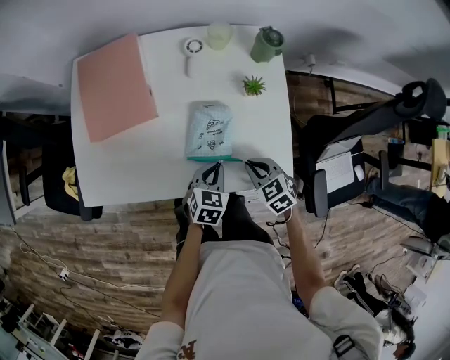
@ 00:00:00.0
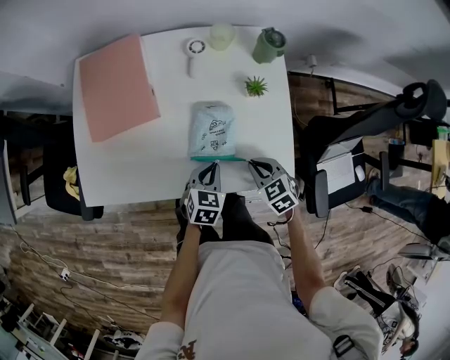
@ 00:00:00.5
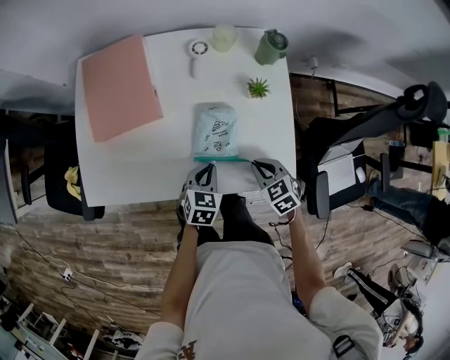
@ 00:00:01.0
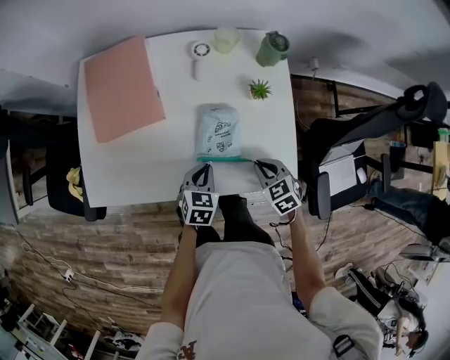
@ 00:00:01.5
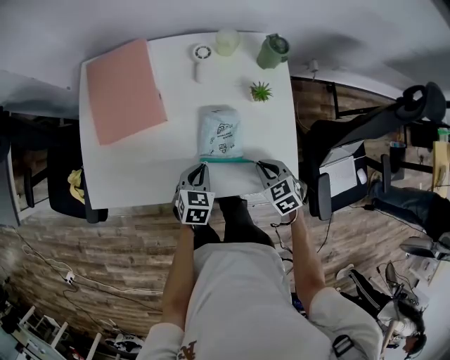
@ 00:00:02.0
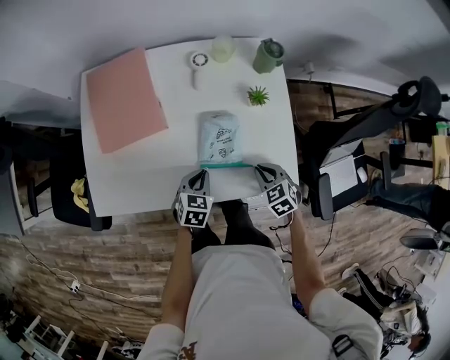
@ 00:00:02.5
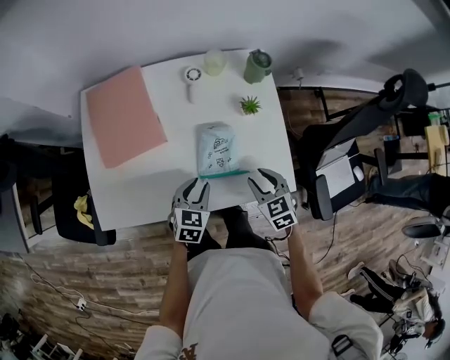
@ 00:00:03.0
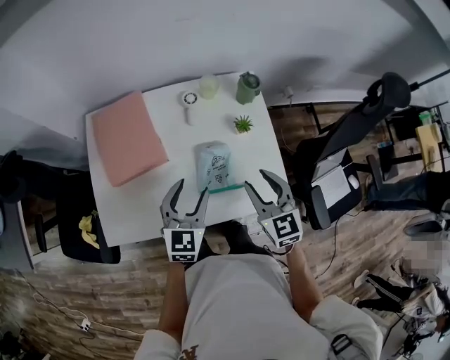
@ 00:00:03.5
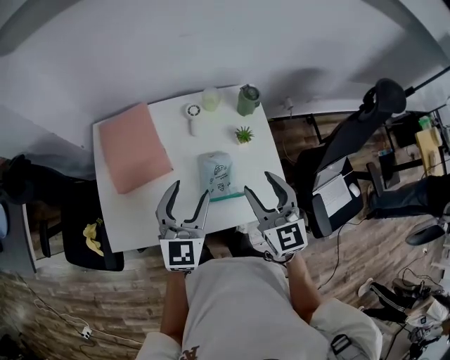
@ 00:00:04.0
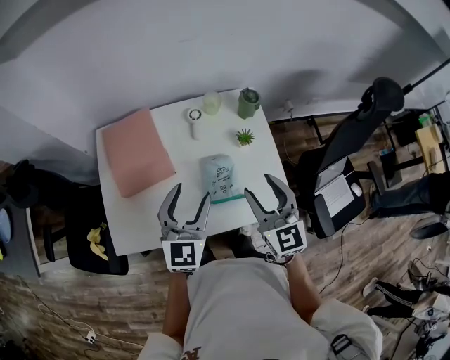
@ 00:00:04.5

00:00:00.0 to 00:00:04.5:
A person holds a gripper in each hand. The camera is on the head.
00:00:00.0 to 00:00:02.0: The left gripper shifts roughly 5 cm to the left.
00:00:02.0 to 00:00:04.5: The two grippers go approximately 30 cm upward. The left gripper angles its fingers upward, by some 40 degrees, and opens, while the right gripper points its fingers about 40 degrees further upward, and opens up.

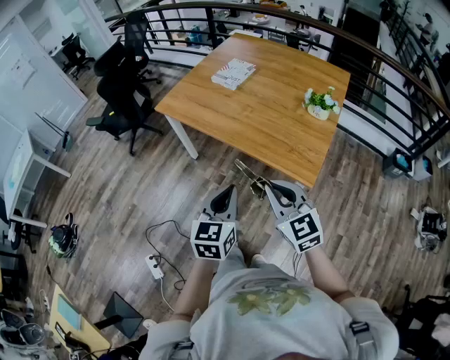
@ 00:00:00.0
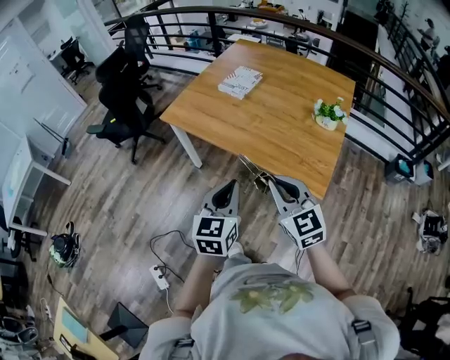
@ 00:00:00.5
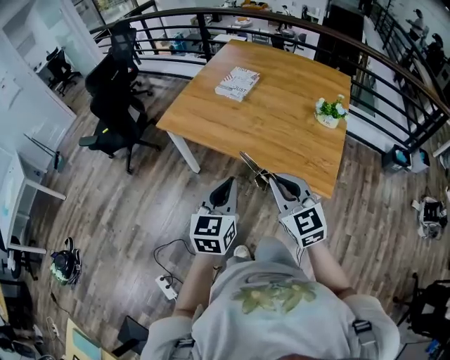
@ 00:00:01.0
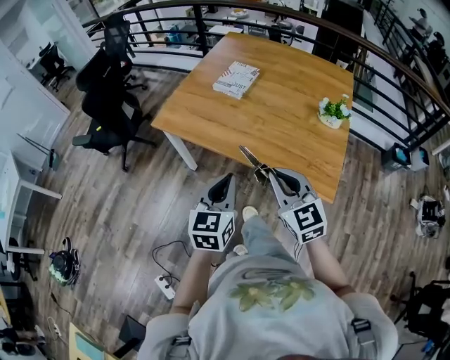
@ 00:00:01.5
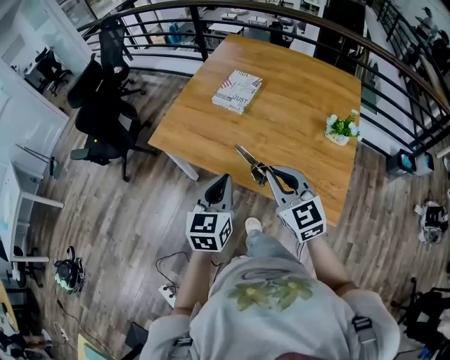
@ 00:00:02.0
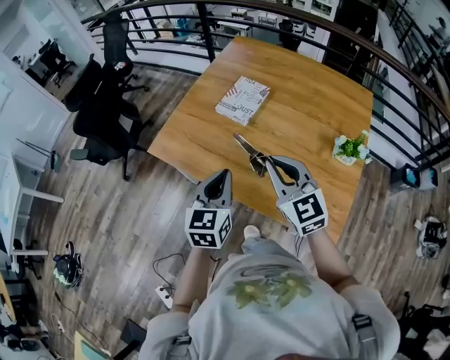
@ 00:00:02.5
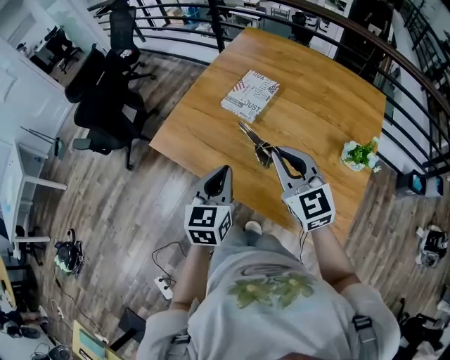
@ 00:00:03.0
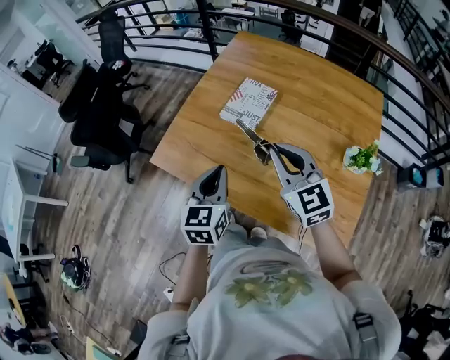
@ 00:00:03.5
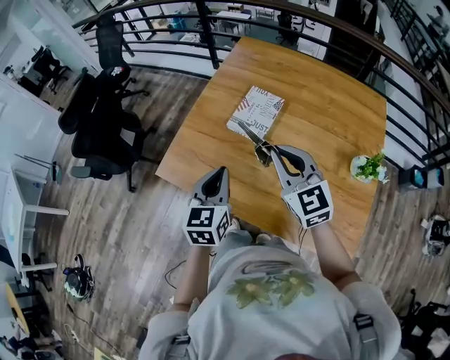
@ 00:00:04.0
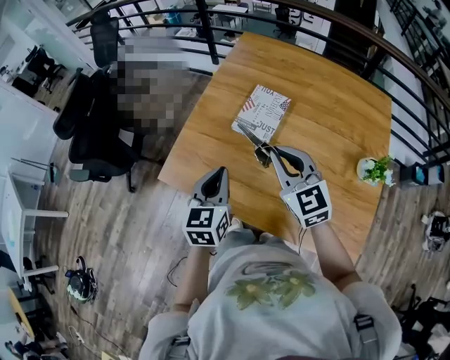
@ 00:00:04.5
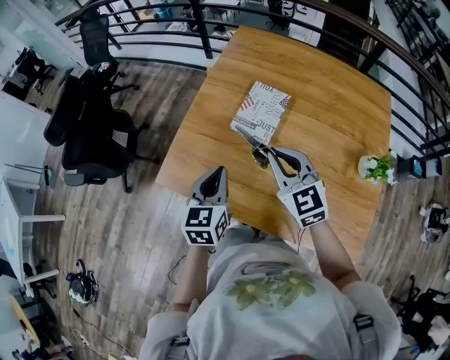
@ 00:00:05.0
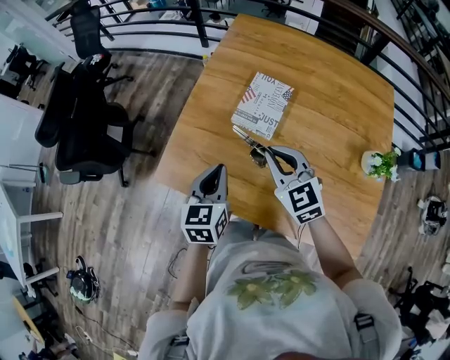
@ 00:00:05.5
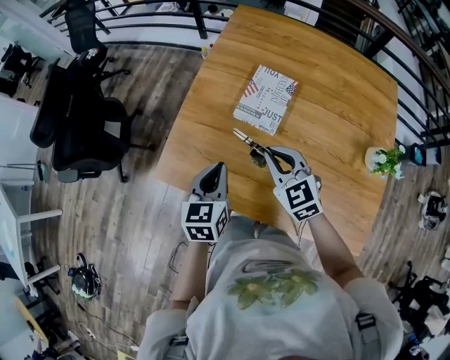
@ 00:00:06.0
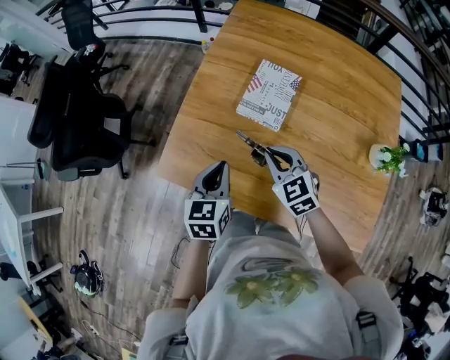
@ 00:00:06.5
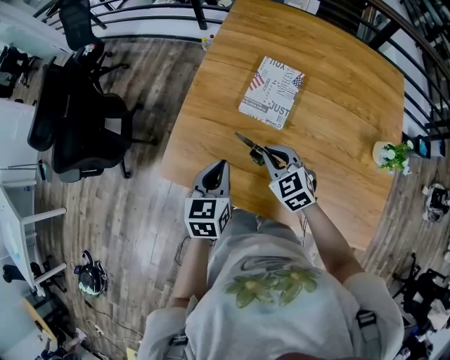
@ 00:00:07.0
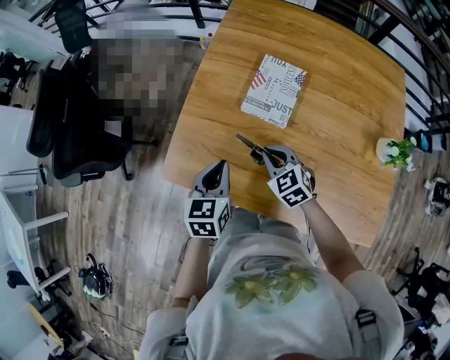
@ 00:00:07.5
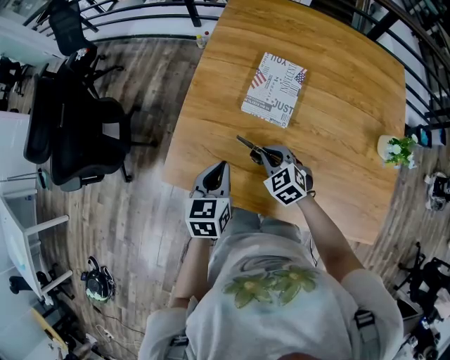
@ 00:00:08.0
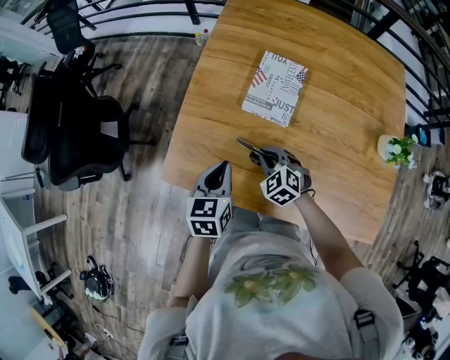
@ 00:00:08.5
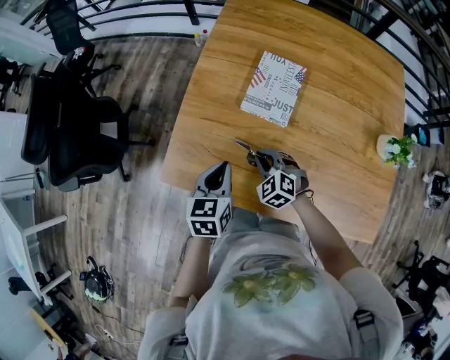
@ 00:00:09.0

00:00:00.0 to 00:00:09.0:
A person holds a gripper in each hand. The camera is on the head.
00:00:00.0 to 00:00:02.0: Both grippers travel together forward, approximately 30 cm.
00:00:02.0 to 00:00:04.5: The two grippers go about 30 cm forward.
00:00:04.5 to 00:00:07.0: The right gripper goes some 20 cm downward, and changes its angle by approximately 20 degrees, while the left gripper goes roughly 10 cm downward and forward.
00:00:07.0 to 00:00:09.0: The right gripper heads downward, covering roughly 10 cm.

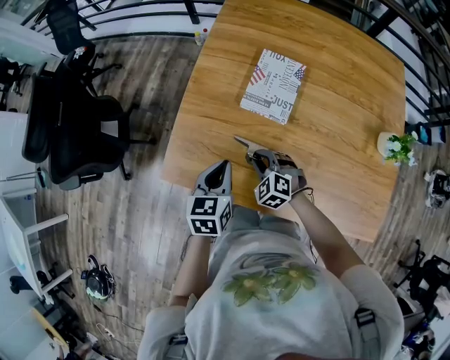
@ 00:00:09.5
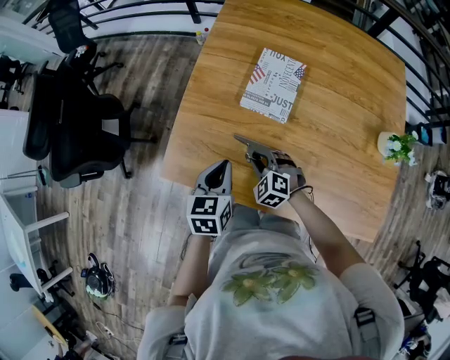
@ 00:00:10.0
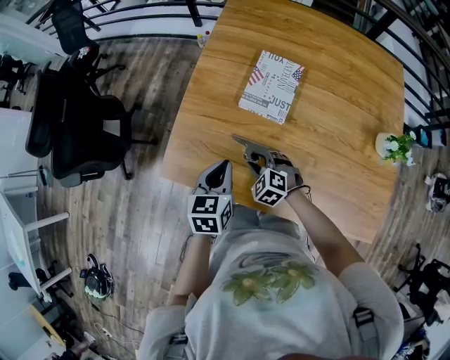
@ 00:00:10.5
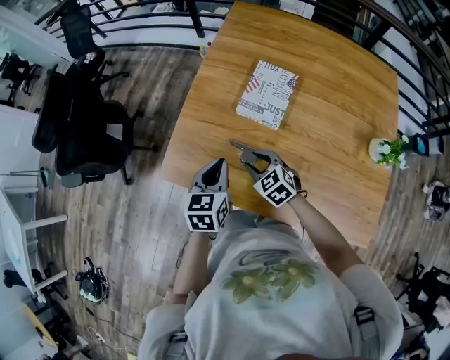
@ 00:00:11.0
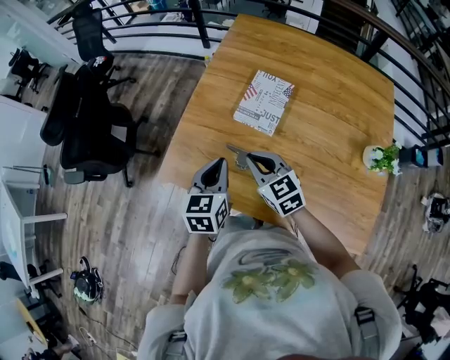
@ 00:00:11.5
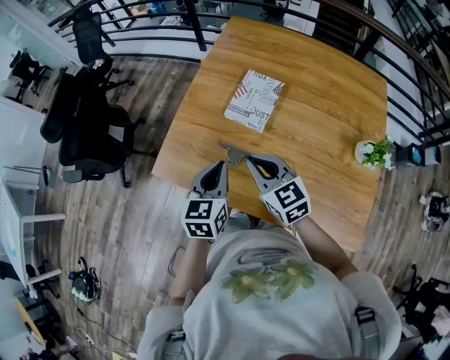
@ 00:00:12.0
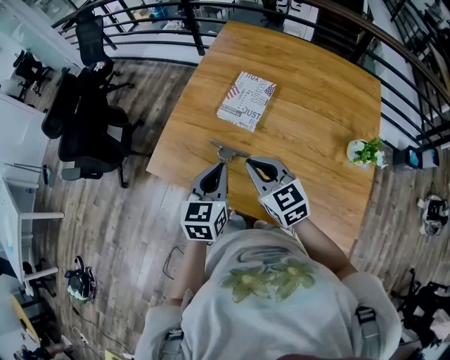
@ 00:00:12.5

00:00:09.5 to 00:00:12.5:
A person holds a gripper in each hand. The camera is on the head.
00:00:09.5 to 00:00:11.0: The right gripper moves upward, approximately 5 cm, and swivels roughly 20 degrees.
00:00:11.0 to 00:00:12.5: The right gripper travels upward and backward by some 20 cm, turns by approximately 20 degrees, and closes its fingers, while the left gripper heads backward, upward and to the right, covering some 15 cm.

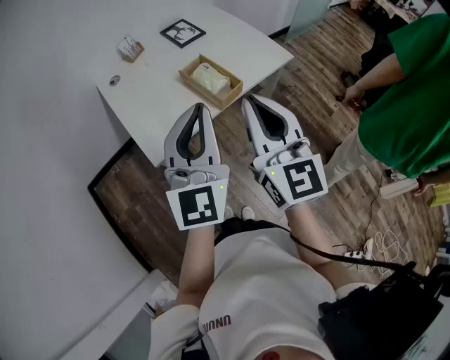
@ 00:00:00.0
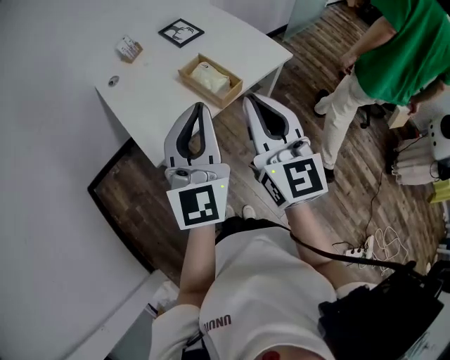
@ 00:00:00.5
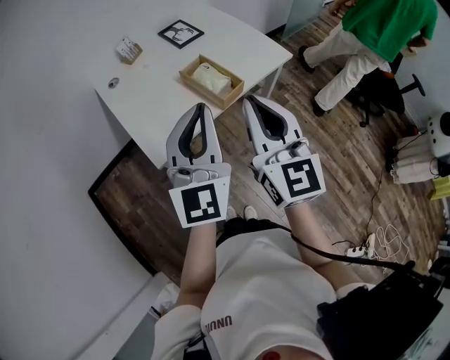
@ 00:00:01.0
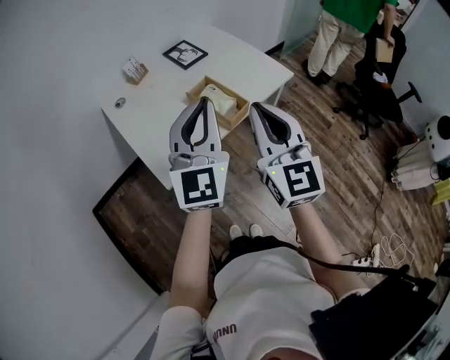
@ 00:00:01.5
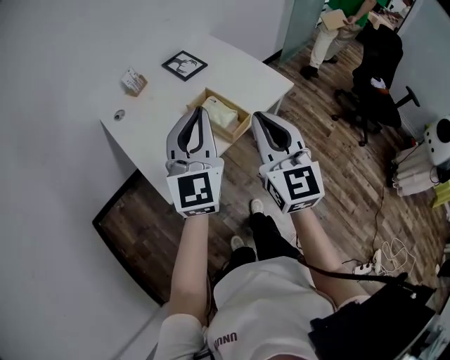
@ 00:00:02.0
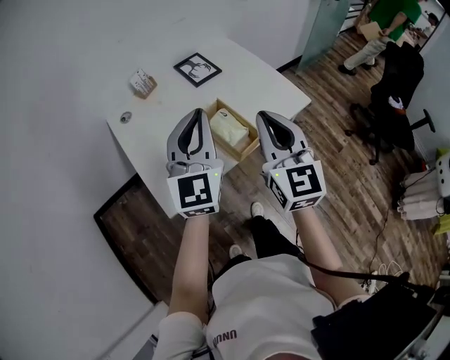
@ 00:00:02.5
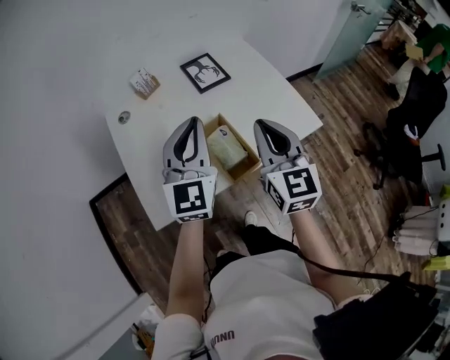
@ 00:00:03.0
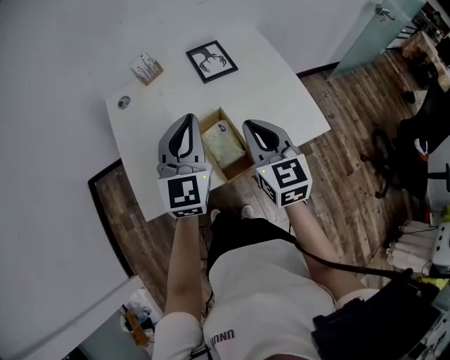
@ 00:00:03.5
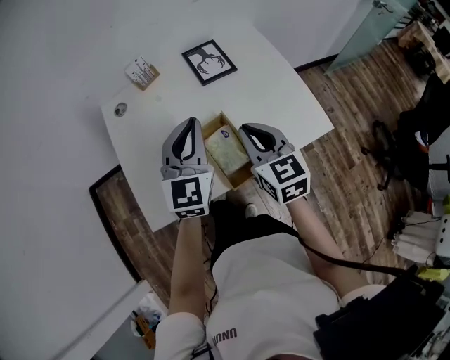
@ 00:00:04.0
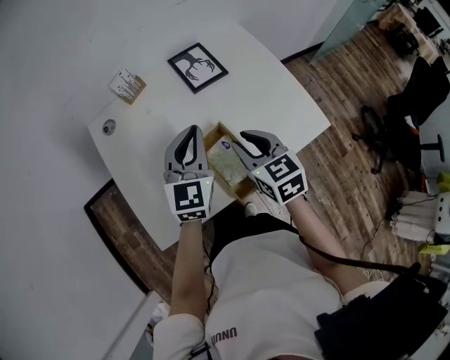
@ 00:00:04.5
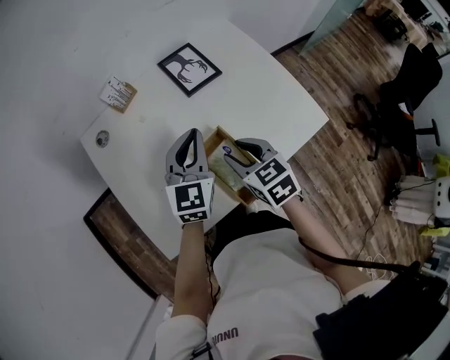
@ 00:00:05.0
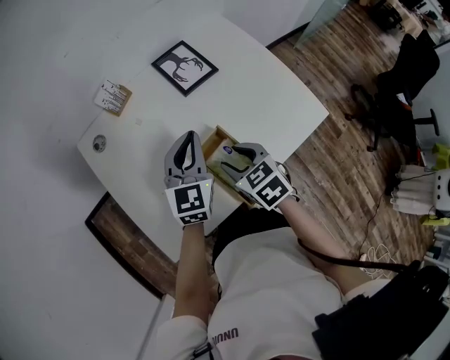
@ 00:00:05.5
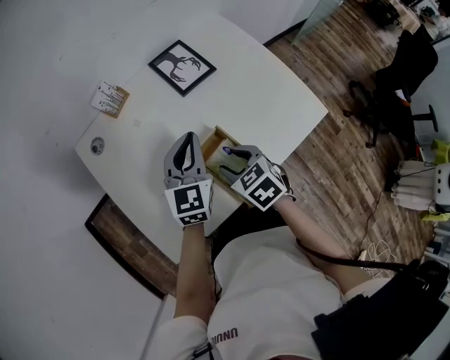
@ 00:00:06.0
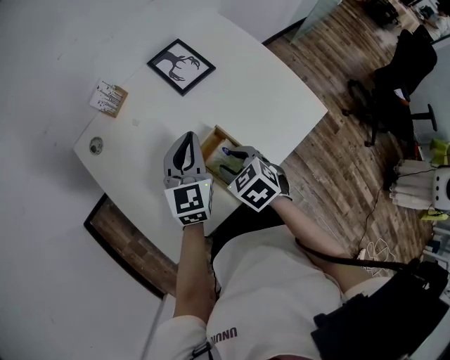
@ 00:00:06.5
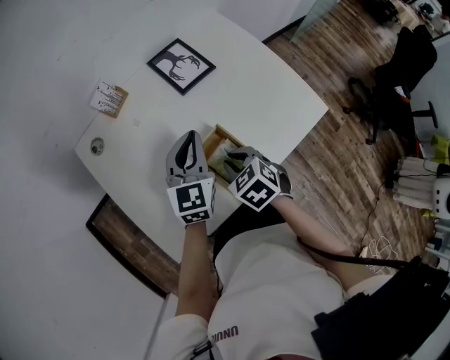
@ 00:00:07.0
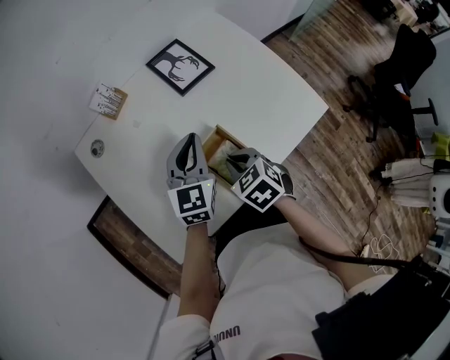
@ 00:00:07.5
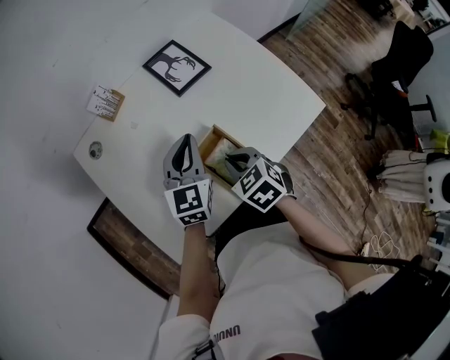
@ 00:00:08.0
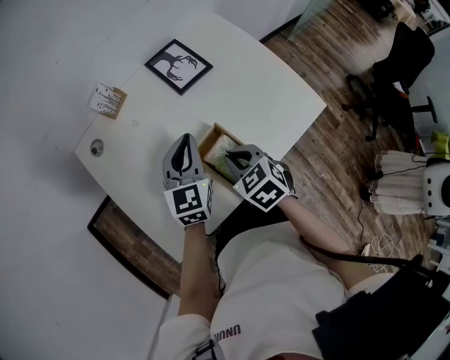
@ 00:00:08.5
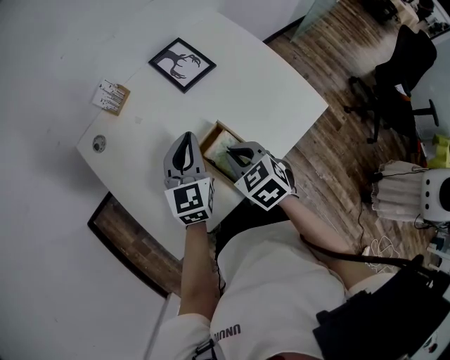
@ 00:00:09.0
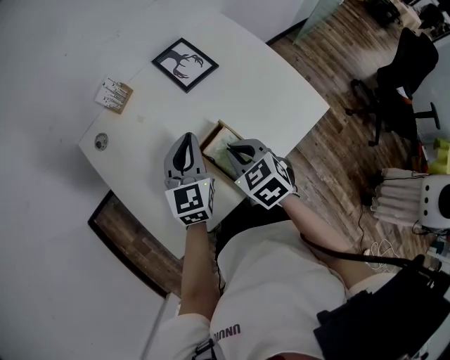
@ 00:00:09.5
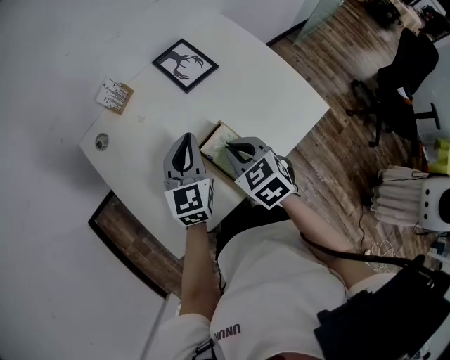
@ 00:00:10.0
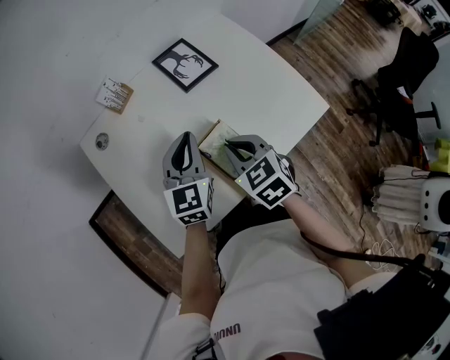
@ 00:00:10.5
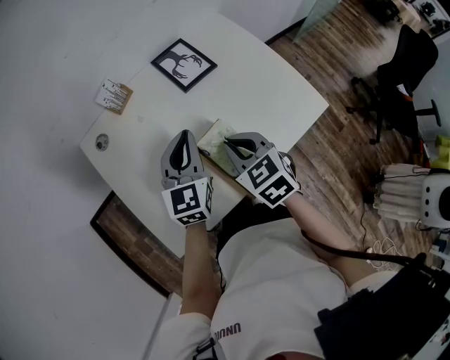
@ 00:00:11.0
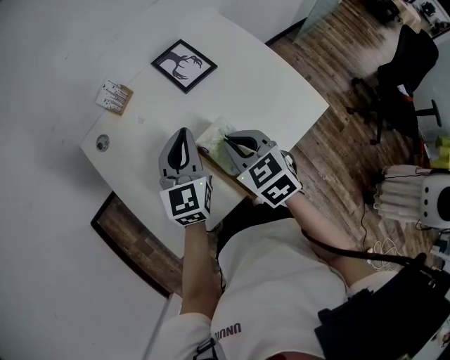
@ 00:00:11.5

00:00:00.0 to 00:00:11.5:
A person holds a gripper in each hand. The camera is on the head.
00:00:00.0 to 00:00:02.0: The right gripper travels forward by approximately 5 cm; the left gripper is displaced forward by approximately 10 cm.
00:00:02.0 to 00:00:04.0: The grippers both shift forward and downward by roughly 25 cm. The right gripper rotates roughly 40 degrees. The left gripper rotates some 20 degrees.
00:00:04.0 to 00:00:06.0: The left gripper moves downward and forward, about 10 cm. The right gripper shifts about 15 cm downward and to the left, tips its fingers downward by some 30 degrees, and opens its fingers.
00:00:06.0 to 00:00:07.5: The right gripper closes.
00:00:07.5 to 00:00:09.5: There are only small adjustments of the grippers.
00:00:09.5 to 00:00:11.5: The right gripper changes place by about 5 cm.
